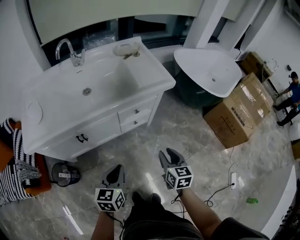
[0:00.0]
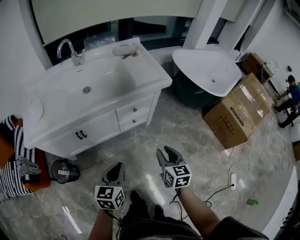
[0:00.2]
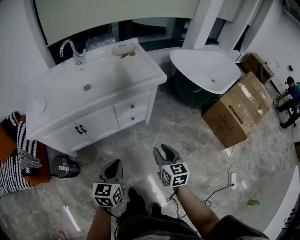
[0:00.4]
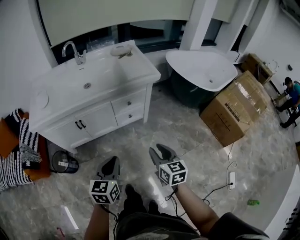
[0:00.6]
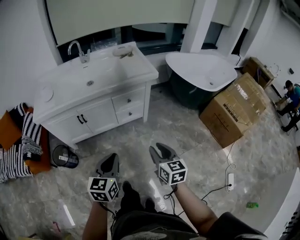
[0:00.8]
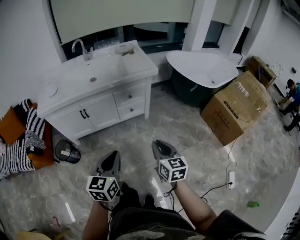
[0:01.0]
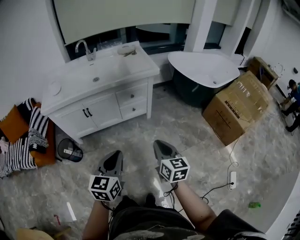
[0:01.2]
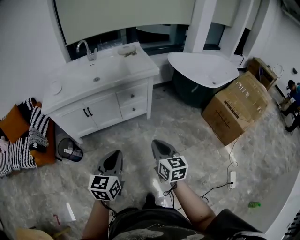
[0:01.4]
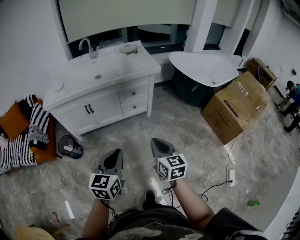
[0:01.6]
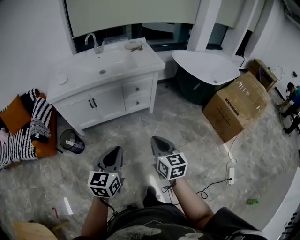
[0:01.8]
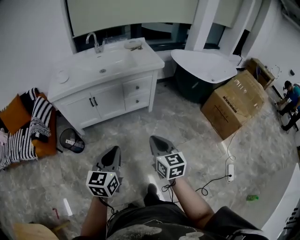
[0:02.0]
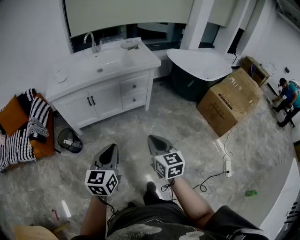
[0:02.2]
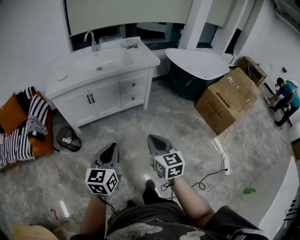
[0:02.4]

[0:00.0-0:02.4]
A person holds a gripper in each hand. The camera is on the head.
0:00.0 to 0:01.2: The right gripper is displaced backward and upward by approximately 25 cm, and closes, while the left gripper shifts about 30 cm backward, to the right and upward.
0:01.2 to 0:02.4: Both grippers travel together backward and to the left, approximately 15 cm.

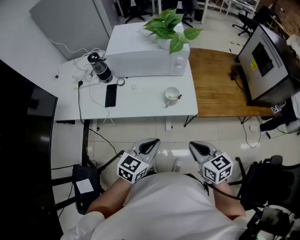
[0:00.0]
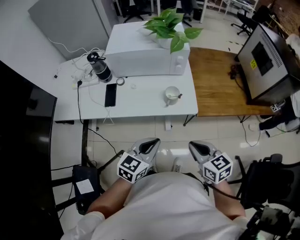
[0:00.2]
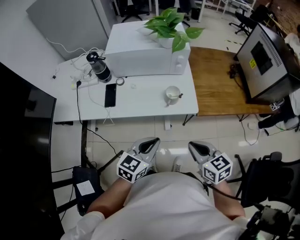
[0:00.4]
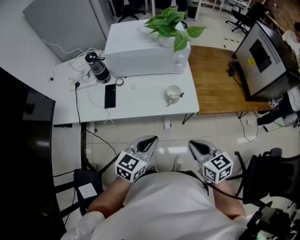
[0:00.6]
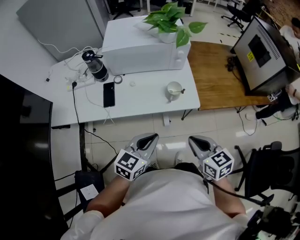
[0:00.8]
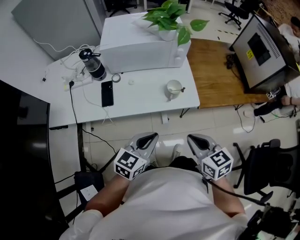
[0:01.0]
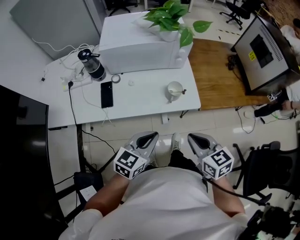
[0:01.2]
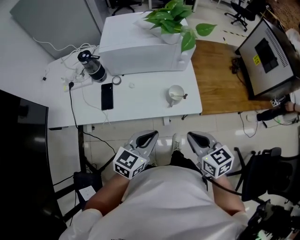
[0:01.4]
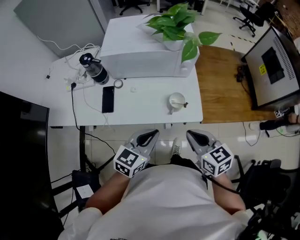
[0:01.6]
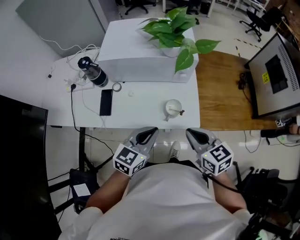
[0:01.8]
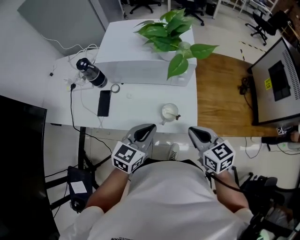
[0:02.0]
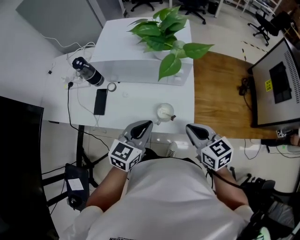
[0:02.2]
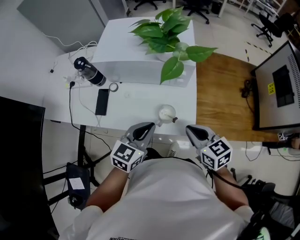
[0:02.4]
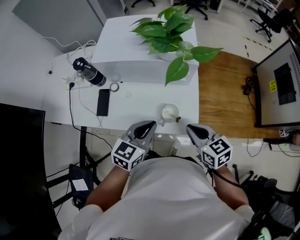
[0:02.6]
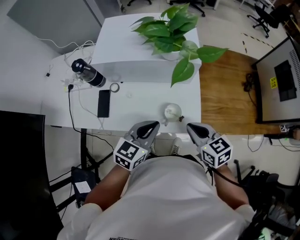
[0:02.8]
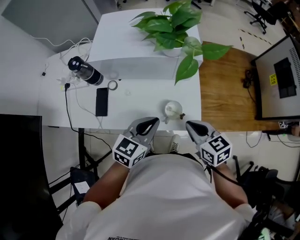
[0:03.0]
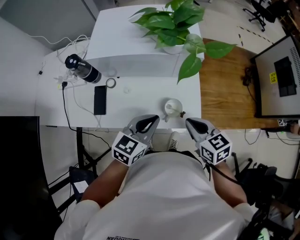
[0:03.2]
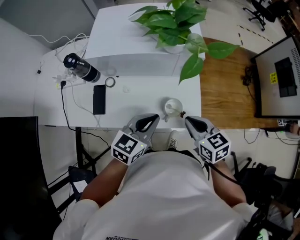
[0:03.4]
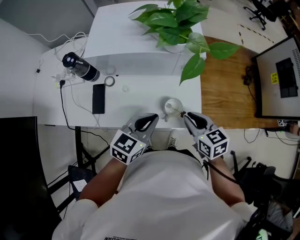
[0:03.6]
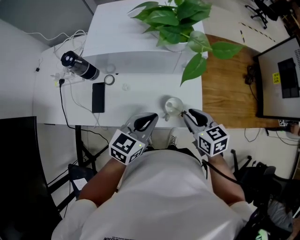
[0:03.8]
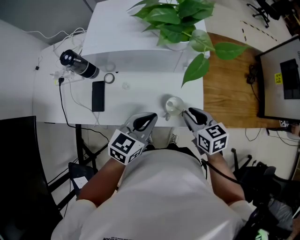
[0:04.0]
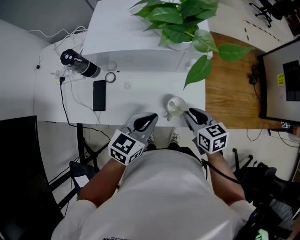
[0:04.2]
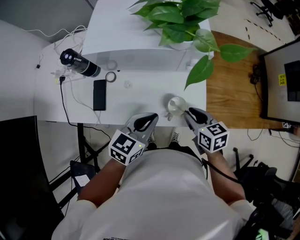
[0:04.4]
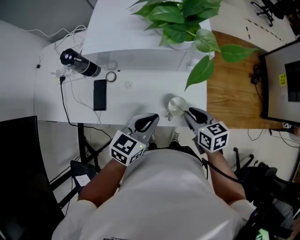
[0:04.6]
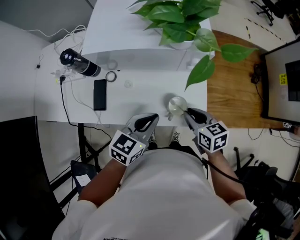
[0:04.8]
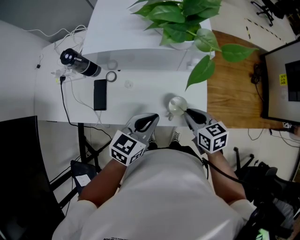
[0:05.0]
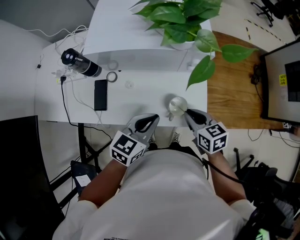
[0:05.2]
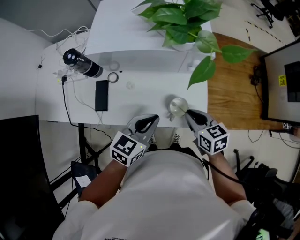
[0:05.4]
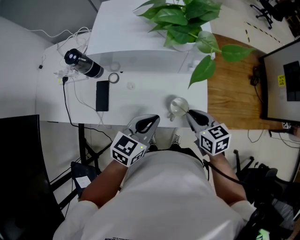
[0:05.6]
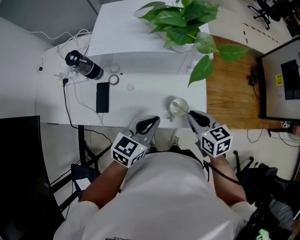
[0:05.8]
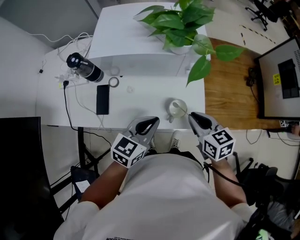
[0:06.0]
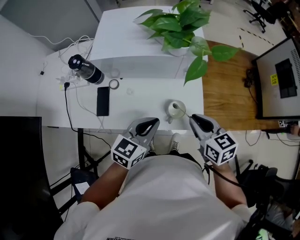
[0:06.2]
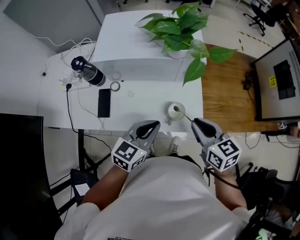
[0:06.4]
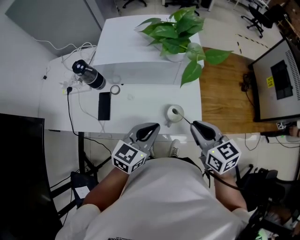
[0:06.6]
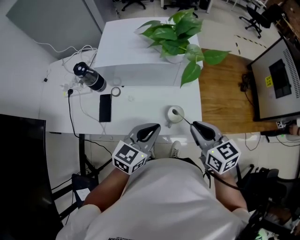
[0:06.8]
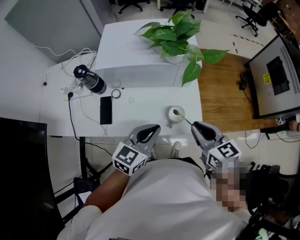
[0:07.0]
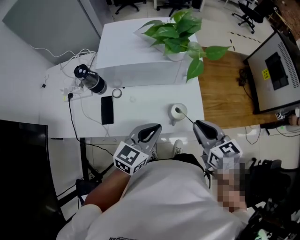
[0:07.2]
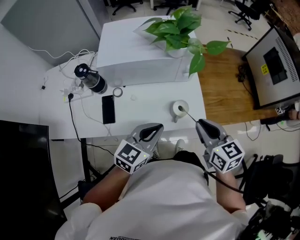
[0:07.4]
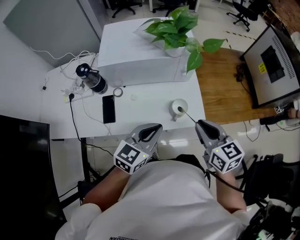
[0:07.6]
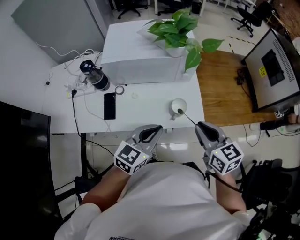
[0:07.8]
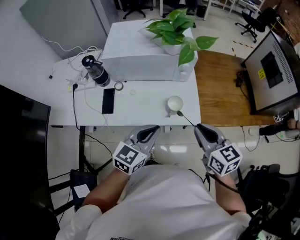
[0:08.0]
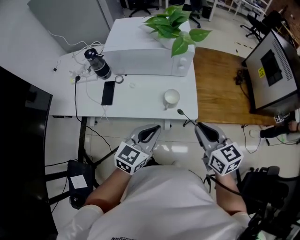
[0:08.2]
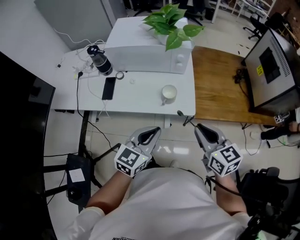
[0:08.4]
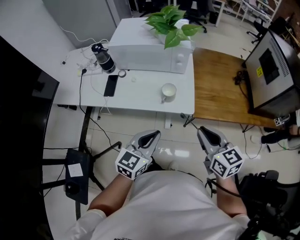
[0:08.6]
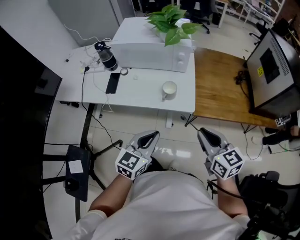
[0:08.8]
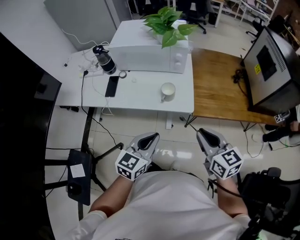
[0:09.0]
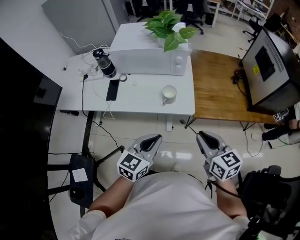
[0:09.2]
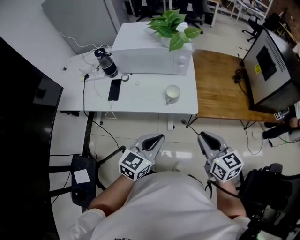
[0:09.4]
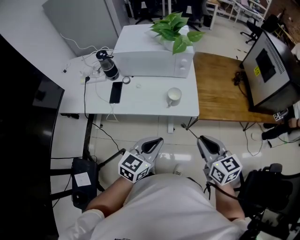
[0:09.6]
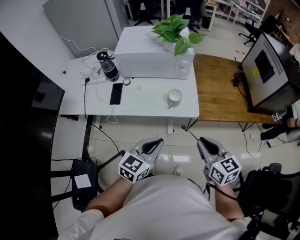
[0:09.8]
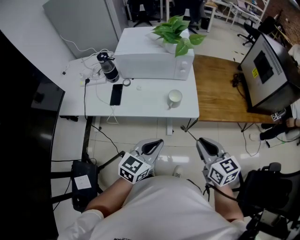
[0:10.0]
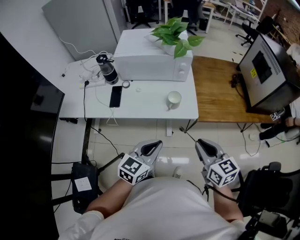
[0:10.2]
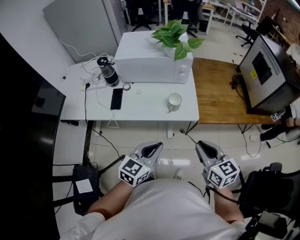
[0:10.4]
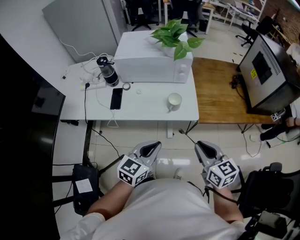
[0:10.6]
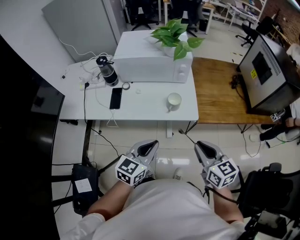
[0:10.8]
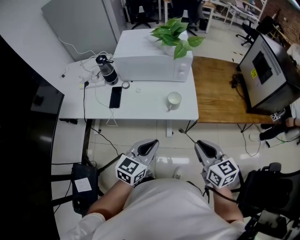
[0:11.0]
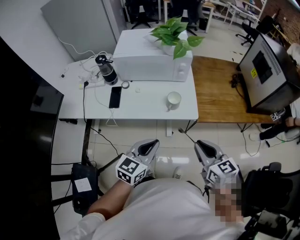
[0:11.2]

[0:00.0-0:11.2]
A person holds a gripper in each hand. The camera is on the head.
0:00.0 to 0:01.6: The left gripper is displaced forward by about 10 cm, while the right gripper shifts roughly 15 cm forward and to the left.
0:01.6 to 0:03.2: Both grippers travel together forward, roughly 10 cm.
0:03.2 to 0:04.8: The right gripper moves downward, roughly 5 cm.
0:04.8 to 0:06.4: The right gripper shifts approximately 10 cm upward.
0:06.4 to 0:08.0: Both grippers move backward, about 10 cm.
0:08.0 to 0:09.6: Both grippers travel together backward, approximately 15 cm.
0:09.6 to 0:11.2: The grippers make only small movements.

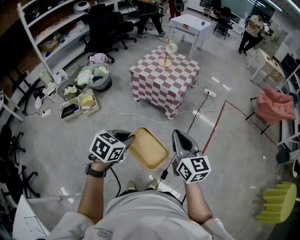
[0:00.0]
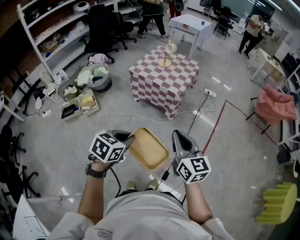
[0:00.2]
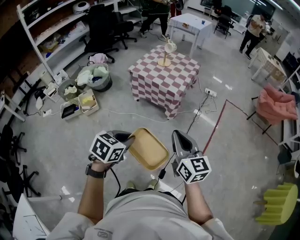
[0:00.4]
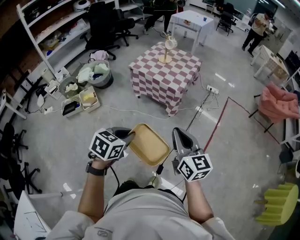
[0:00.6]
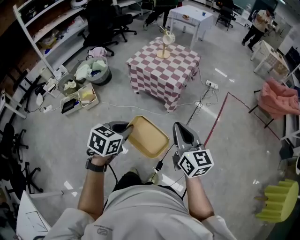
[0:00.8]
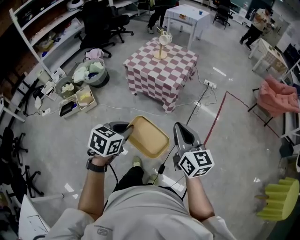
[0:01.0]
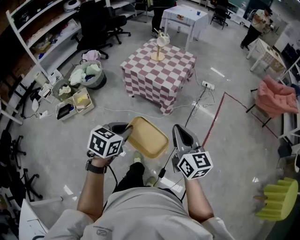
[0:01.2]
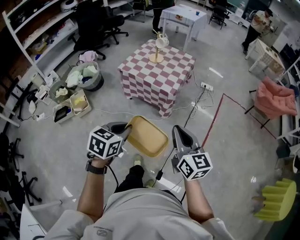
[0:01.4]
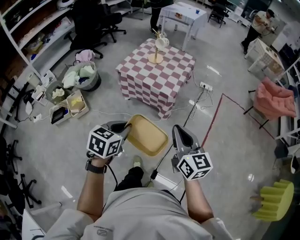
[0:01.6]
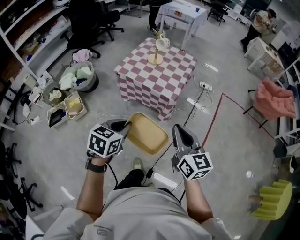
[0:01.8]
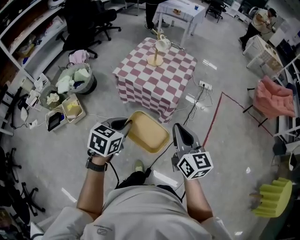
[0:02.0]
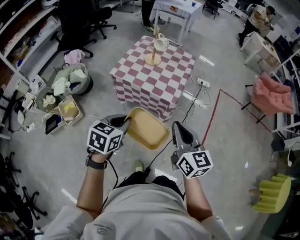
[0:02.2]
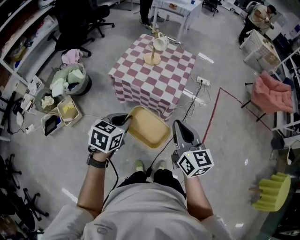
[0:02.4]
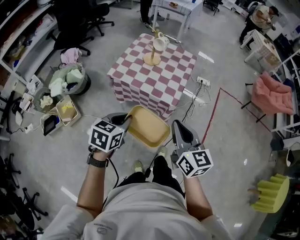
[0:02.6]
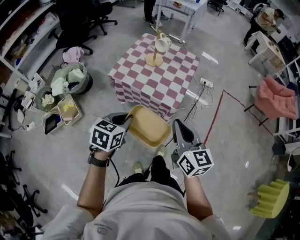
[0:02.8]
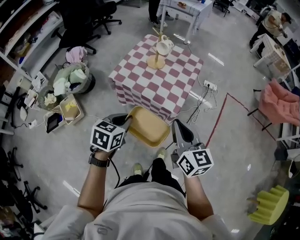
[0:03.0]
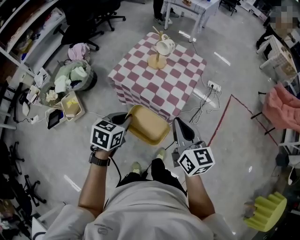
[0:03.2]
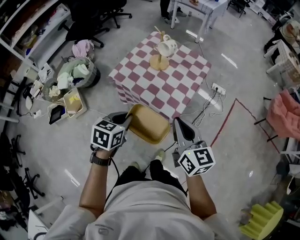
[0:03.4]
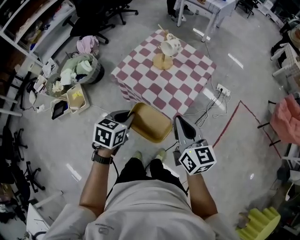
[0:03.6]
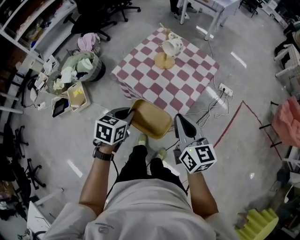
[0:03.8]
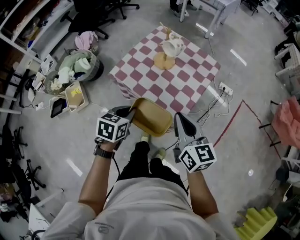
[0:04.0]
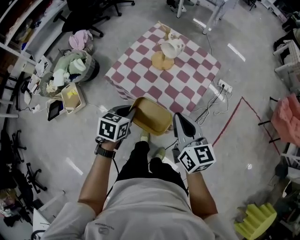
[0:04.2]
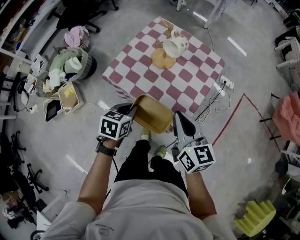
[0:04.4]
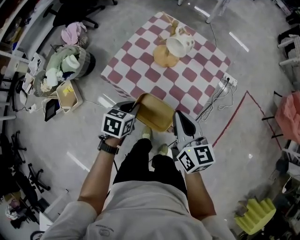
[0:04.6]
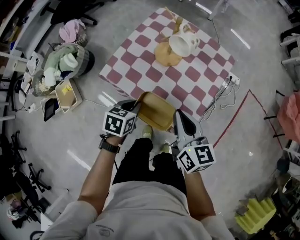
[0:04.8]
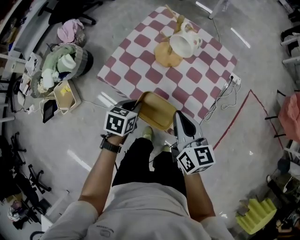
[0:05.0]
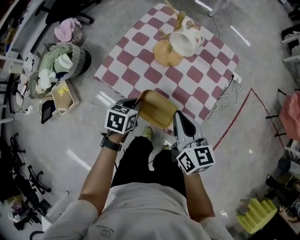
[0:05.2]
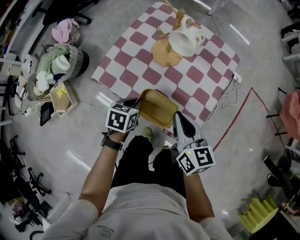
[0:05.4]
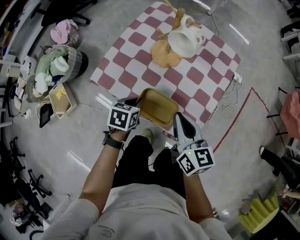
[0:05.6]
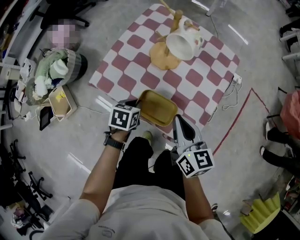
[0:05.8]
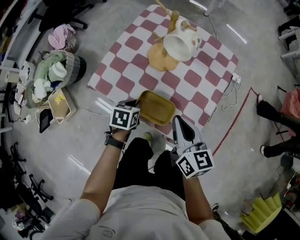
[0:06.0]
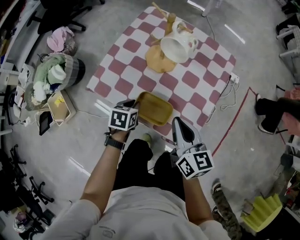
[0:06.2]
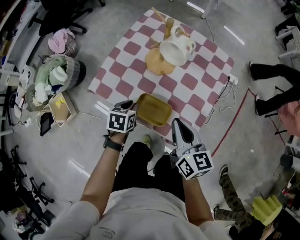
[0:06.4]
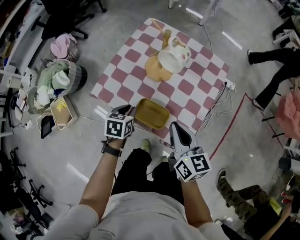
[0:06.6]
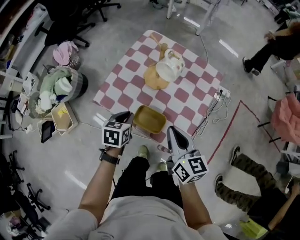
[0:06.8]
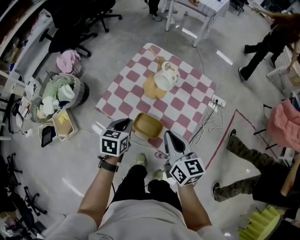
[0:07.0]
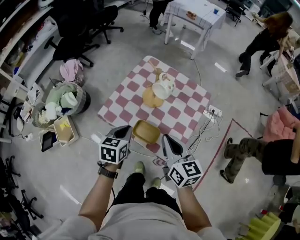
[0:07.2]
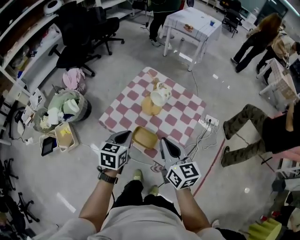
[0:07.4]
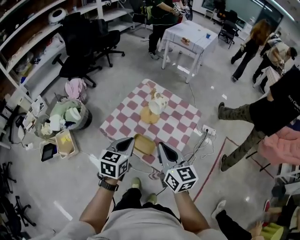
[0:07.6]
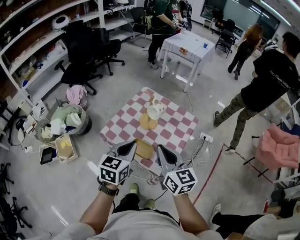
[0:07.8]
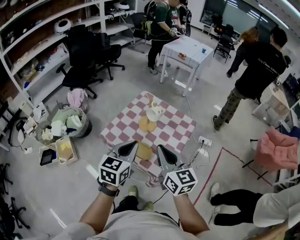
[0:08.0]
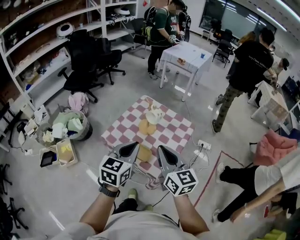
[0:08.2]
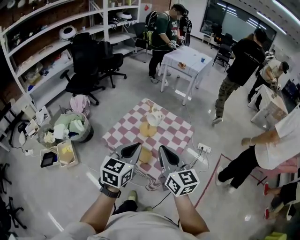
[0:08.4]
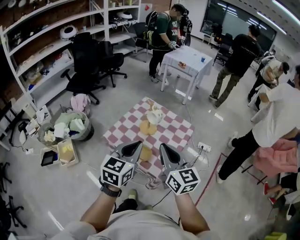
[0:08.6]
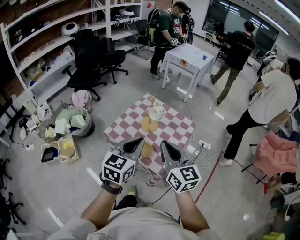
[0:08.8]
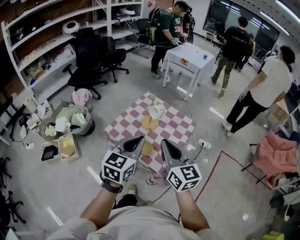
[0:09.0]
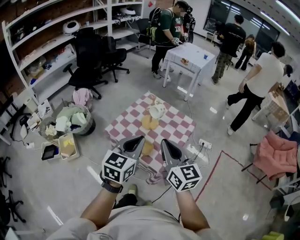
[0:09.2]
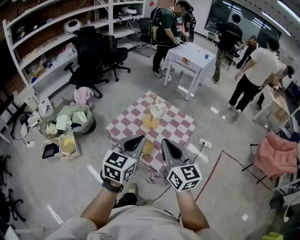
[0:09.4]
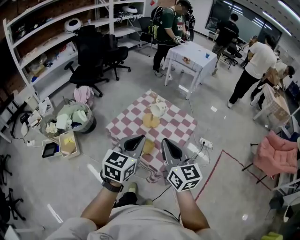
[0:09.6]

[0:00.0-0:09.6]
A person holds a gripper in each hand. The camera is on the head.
0:00.0 to 0:01.6: The grippers both shift forward by approximately 15 cm.
0:01.6 to 0:03.2: The two grippers go about 30 cm forward.
0:03.2 to 0:04.8: Both grippers travel together forward and downward, approximately 30 cm.
0:04.8 to 0:06.4: The right gripper shifts about 5 cm downward, while the left gripper shifts roughly 10 cm downward and forward.
0:06.4 to 0:08.0: The grippers both shift upward by approximately 35 cm. The left gripper angles its fingers upward, by about 40 degrees. The right gripper rotates approximately 20 degrees.
0:08.0 to 0:09.6: The left gripper moves backward and upward, about 10 cm; the right gripper moves backward, about 5 cm.
